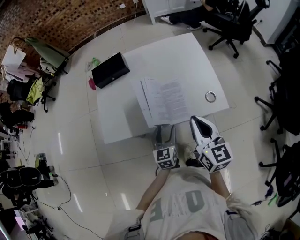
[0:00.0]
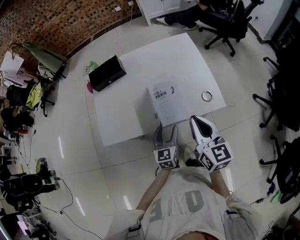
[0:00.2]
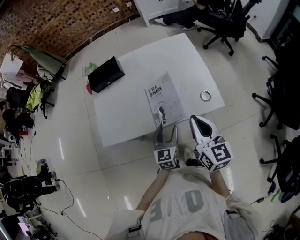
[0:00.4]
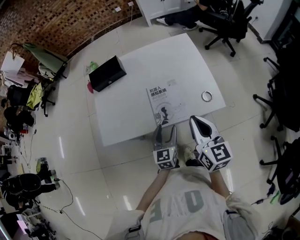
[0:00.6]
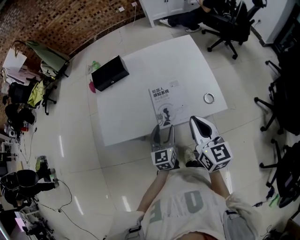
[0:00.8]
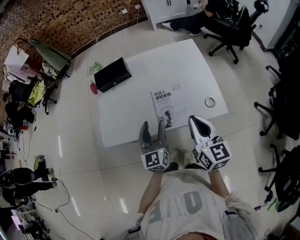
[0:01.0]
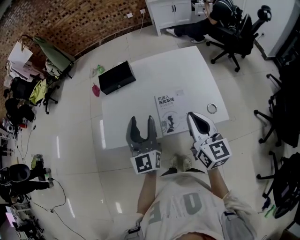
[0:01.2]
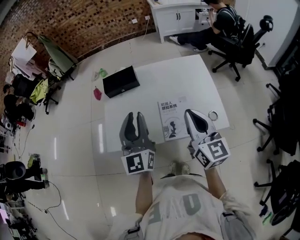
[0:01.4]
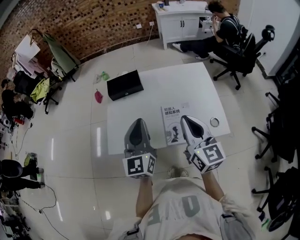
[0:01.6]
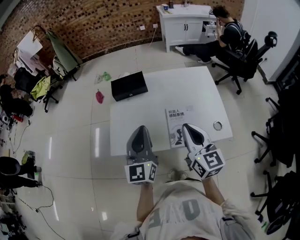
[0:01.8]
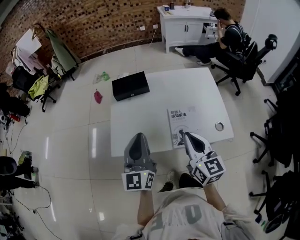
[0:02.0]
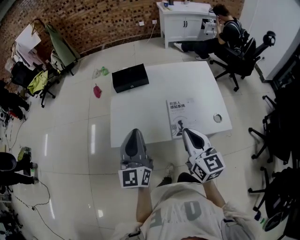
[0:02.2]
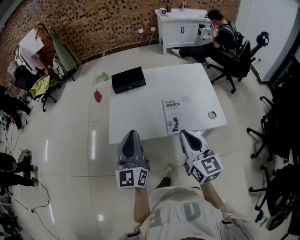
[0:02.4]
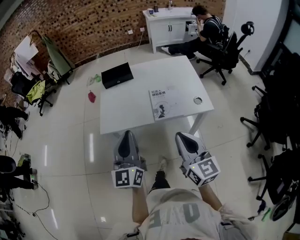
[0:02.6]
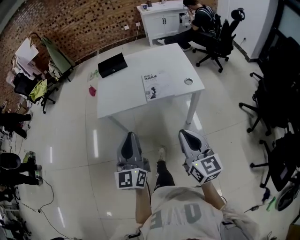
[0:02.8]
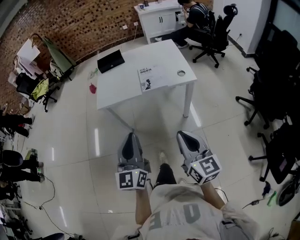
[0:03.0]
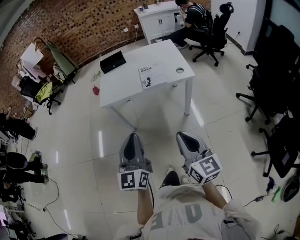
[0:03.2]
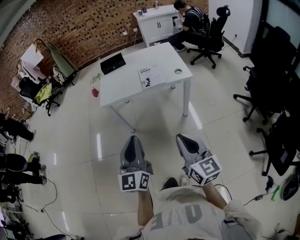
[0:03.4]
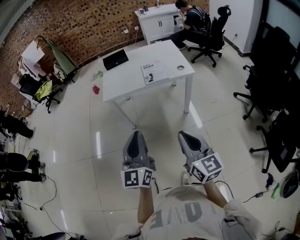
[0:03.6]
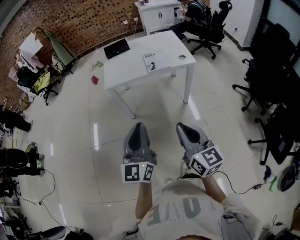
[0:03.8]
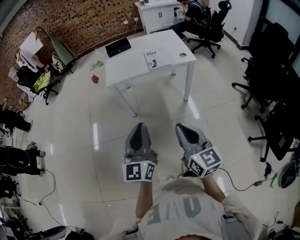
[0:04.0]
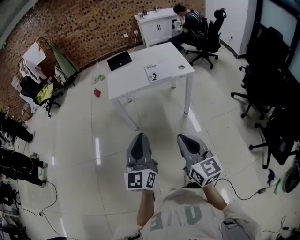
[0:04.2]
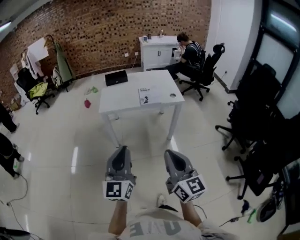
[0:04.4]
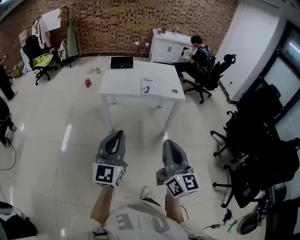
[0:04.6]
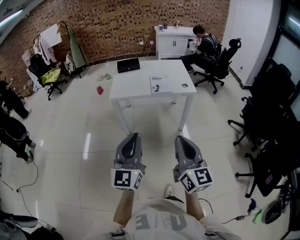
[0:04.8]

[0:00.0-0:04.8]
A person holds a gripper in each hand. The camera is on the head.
0.0 to 1.6 s: The right gripper goes about 10 cm upward, to the left and forward; the left gripper goes about 25 cm upward and to the left, swivels about 30 degrees, and closes.
1.6 to 3.2 s: The two grippers travel together, backward, some 50 cm.
3.2 to 4.8 s: The left gripper goes approximately 15 cm backward. Meanwhile the right gripper moves backward and upward, some 15 cm.

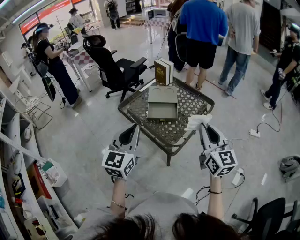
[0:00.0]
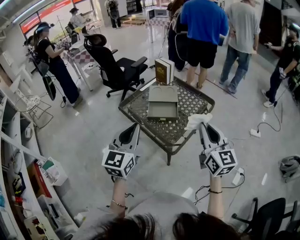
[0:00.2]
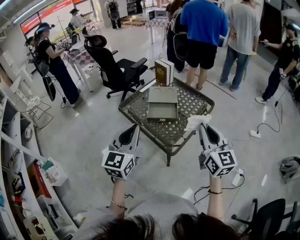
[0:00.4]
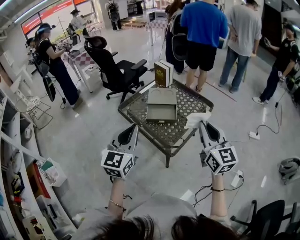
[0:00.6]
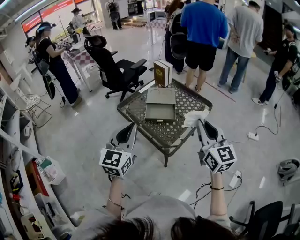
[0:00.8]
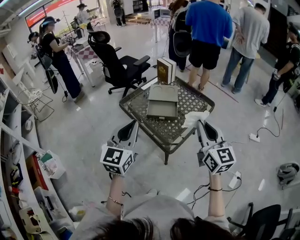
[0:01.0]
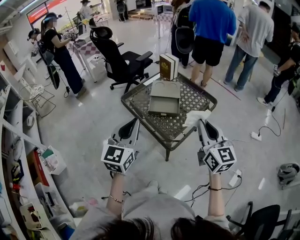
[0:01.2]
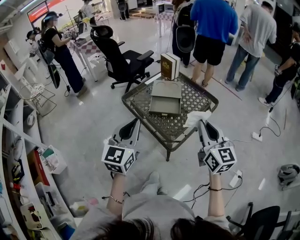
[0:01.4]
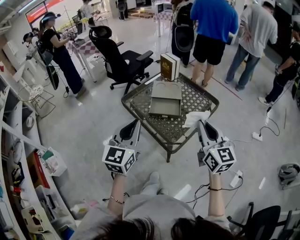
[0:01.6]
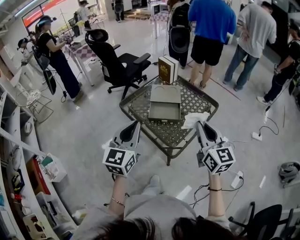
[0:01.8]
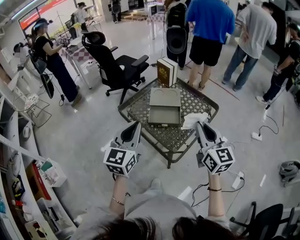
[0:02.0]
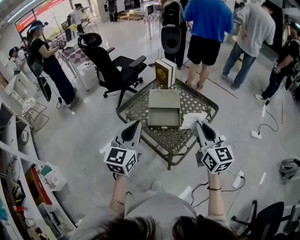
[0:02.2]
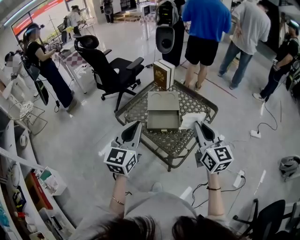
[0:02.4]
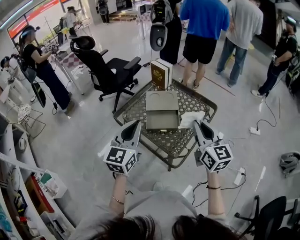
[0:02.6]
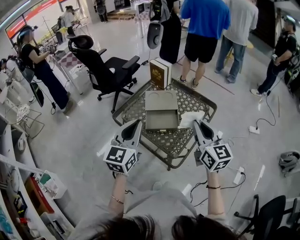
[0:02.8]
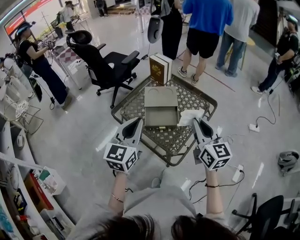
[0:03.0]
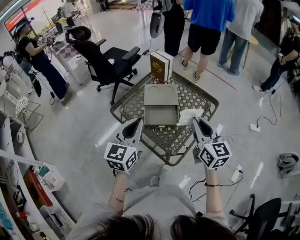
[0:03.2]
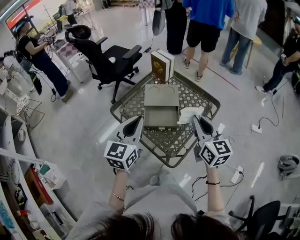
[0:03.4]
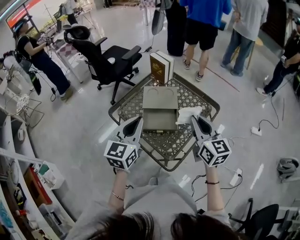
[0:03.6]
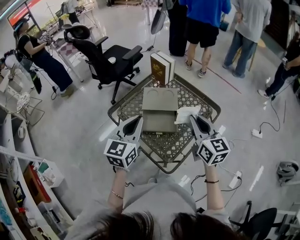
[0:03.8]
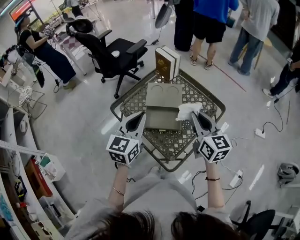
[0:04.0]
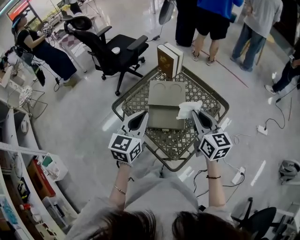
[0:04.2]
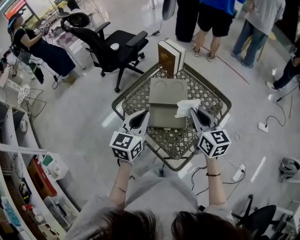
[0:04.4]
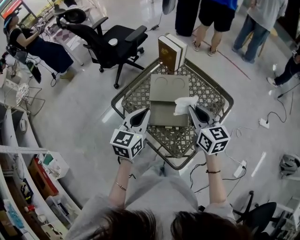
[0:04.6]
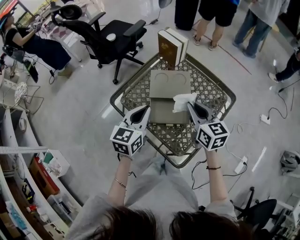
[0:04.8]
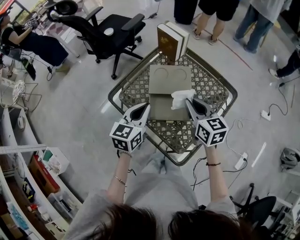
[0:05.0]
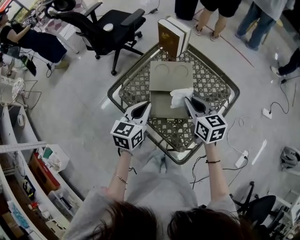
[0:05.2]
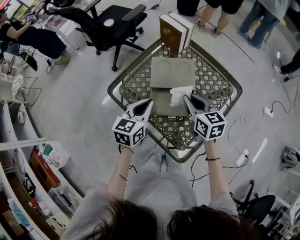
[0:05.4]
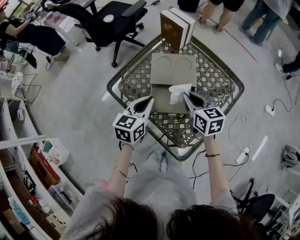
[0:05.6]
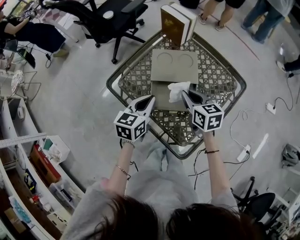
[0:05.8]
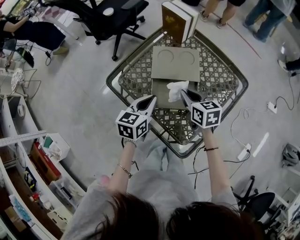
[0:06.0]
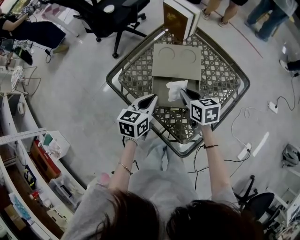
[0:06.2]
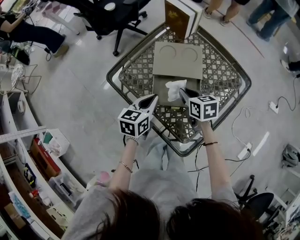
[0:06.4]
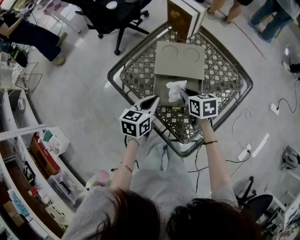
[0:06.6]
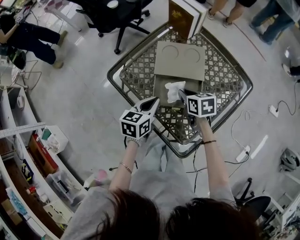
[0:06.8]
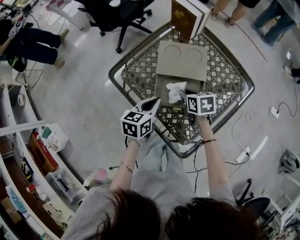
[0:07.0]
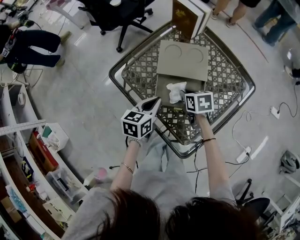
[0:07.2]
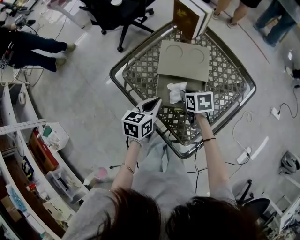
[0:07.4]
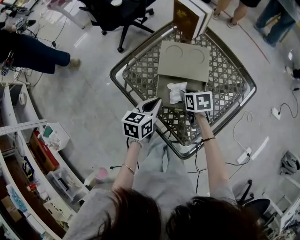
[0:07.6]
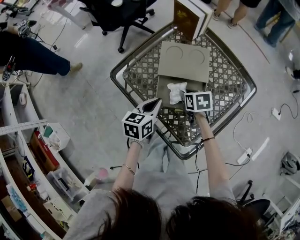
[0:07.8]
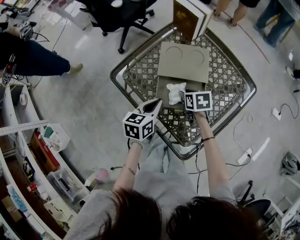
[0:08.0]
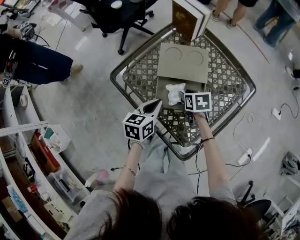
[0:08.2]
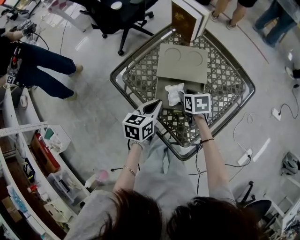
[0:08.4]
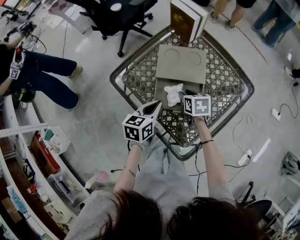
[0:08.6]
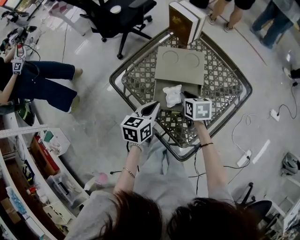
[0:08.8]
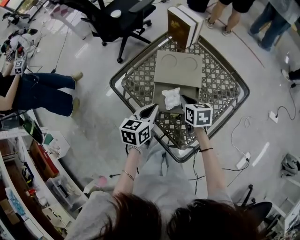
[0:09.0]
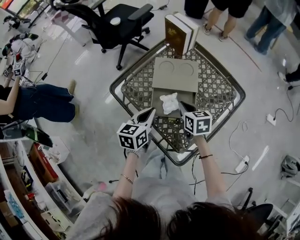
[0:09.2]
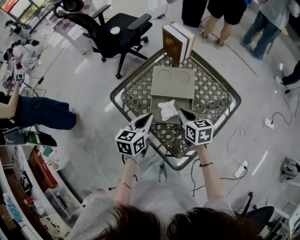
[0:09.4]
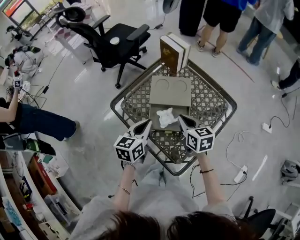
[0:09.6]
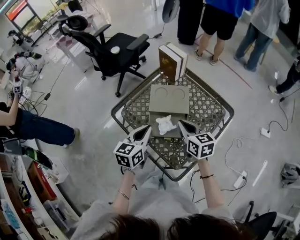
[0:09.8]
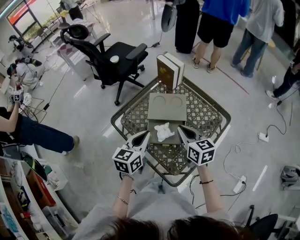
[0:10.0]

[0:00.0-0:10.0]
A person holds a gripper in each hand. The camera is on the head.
0.0 to 1.4 s: The grippers move only a little.
1.4 to 2.8 s: Both grippers travel together forward, about 15 cm.
2.8 to 4.2 s: The grippers both shift forward and downward by some 15 cm.
4.2 to 5.8 s: Both grippers travel together downward, about 20 cm. The right gripper changes its angle by roughly 20 degrees. Meanwhile the left gripper turns by approximately 20 degrees.
5.8 to 7.2 s: The right gripper is displaced downward by roughly 10 cm, and changes its angle by roughly 20 degrees. Meanwhile the left gripper moves downward, roughly 5 cm.
7.2 to 8.6 s: The right gripper opens up.
8.6 to 10.0 s: The two grippers go roughly 15 cm upward. The right gripper tips its fingers upward by some 30 degrees, and closes.

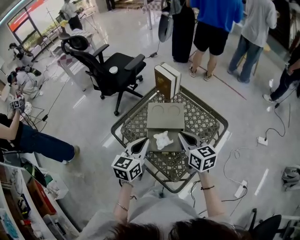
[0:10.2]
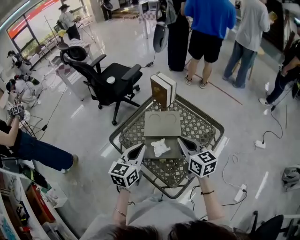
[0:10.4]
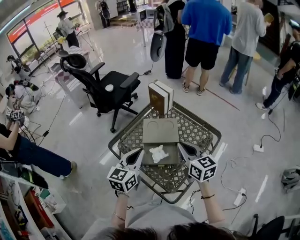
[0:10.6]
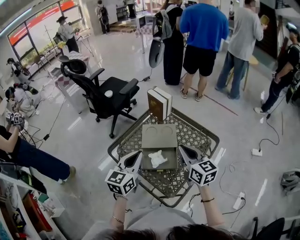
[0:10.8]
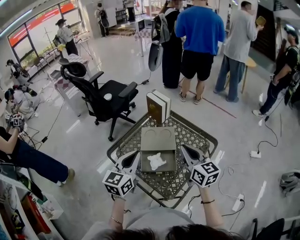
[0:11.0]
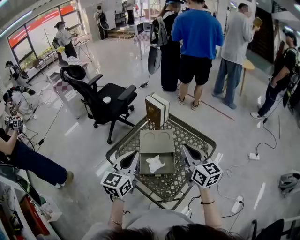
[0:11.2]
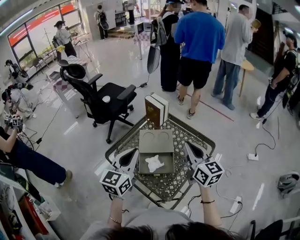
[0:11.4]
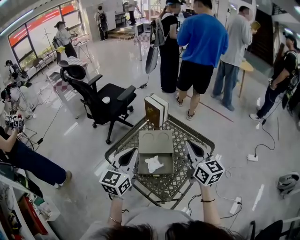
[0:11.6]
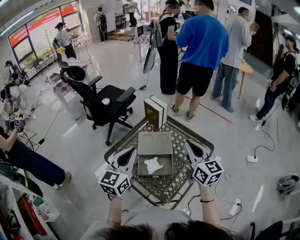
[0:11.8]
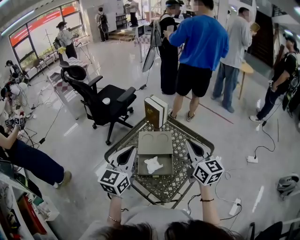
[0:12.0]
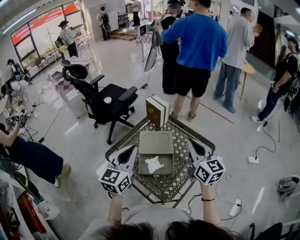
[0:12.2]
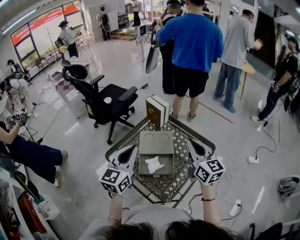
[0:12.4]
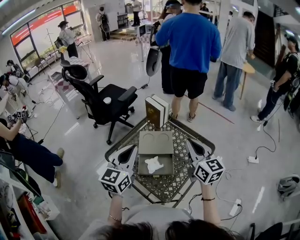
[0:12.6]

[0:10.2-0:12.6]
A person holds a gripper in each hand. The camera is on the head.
10.2 to 11.4 s: The left gripper is displaced upward by approximately 10 cm. Meanwhile the right gripper travels upward and to the right by roughly 15 cm.
11.4 to 12.6 s: There are only small adjustments of the grippers.

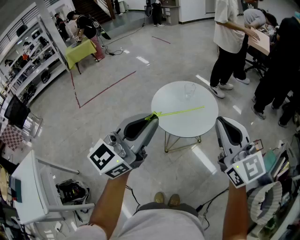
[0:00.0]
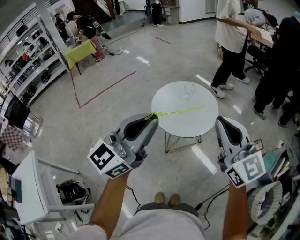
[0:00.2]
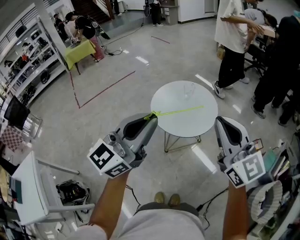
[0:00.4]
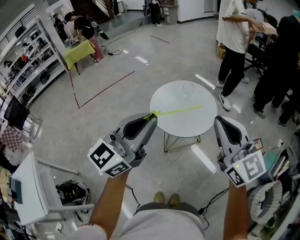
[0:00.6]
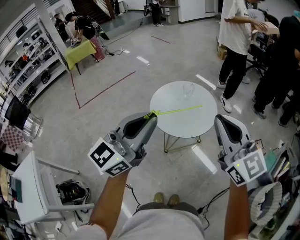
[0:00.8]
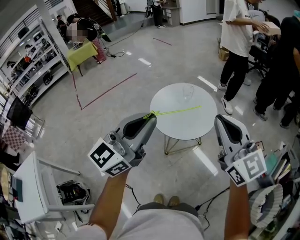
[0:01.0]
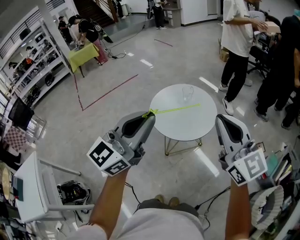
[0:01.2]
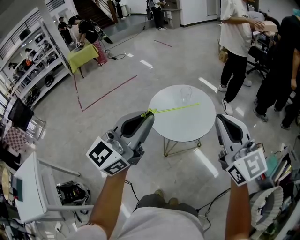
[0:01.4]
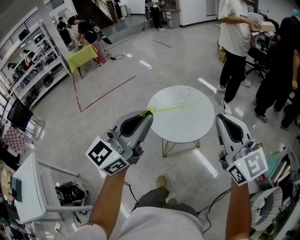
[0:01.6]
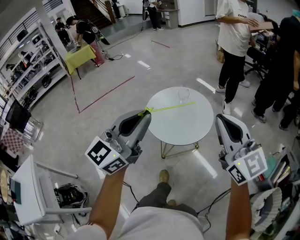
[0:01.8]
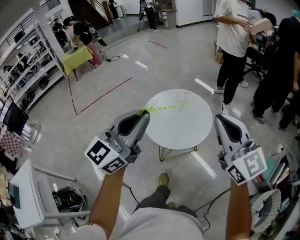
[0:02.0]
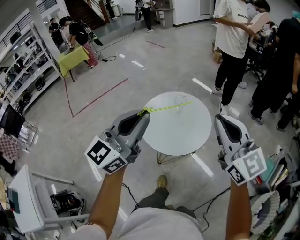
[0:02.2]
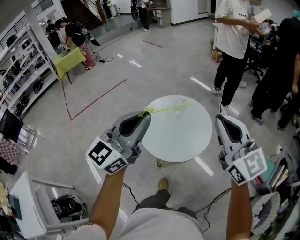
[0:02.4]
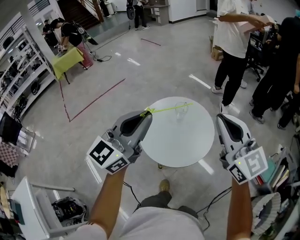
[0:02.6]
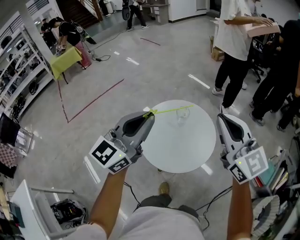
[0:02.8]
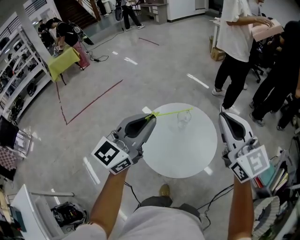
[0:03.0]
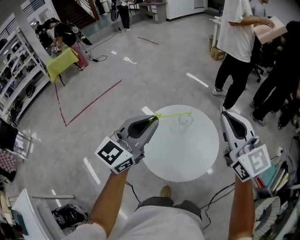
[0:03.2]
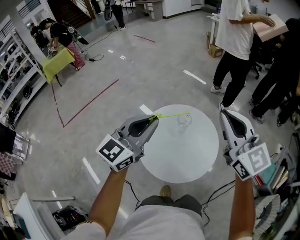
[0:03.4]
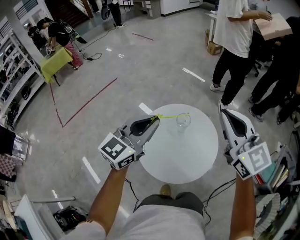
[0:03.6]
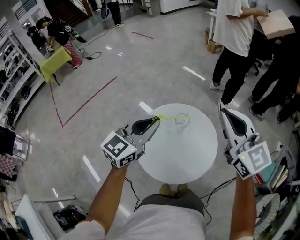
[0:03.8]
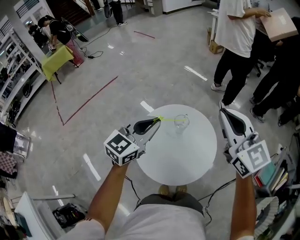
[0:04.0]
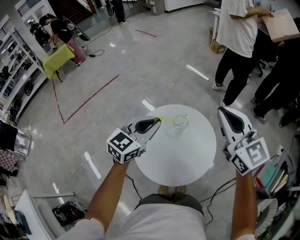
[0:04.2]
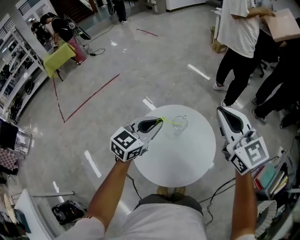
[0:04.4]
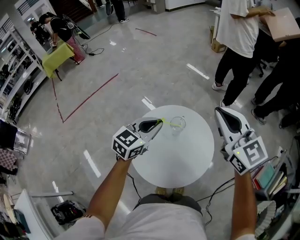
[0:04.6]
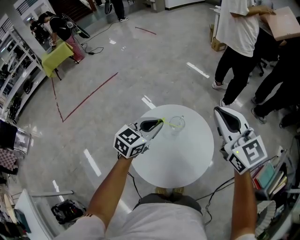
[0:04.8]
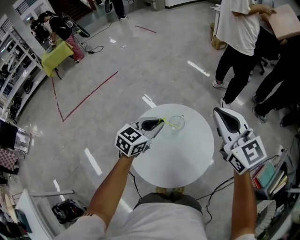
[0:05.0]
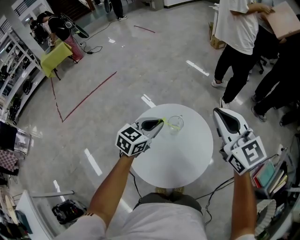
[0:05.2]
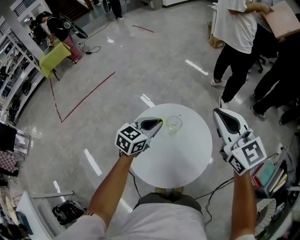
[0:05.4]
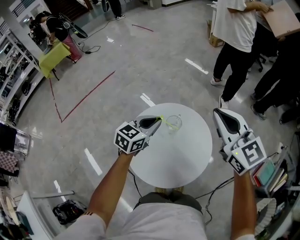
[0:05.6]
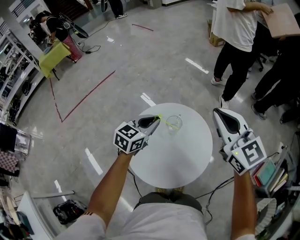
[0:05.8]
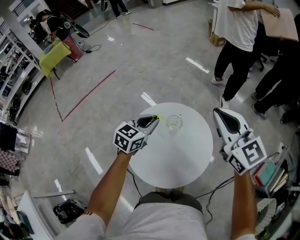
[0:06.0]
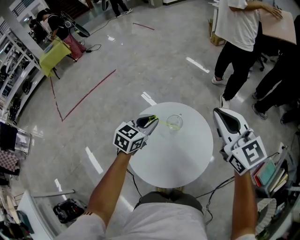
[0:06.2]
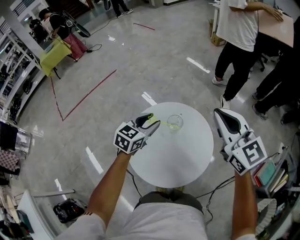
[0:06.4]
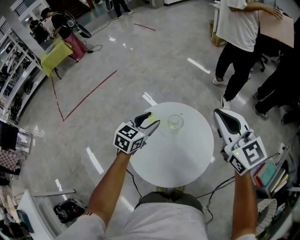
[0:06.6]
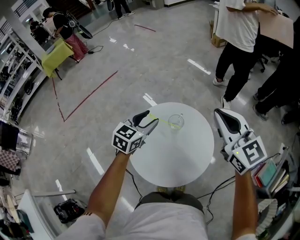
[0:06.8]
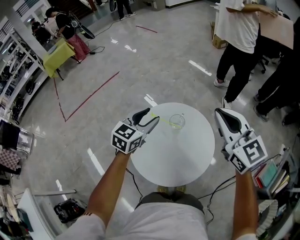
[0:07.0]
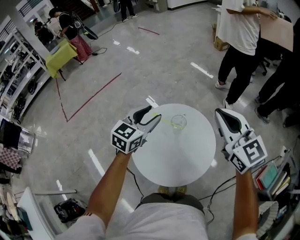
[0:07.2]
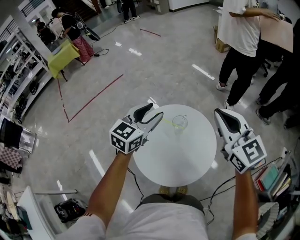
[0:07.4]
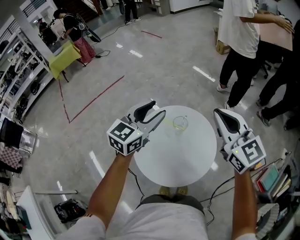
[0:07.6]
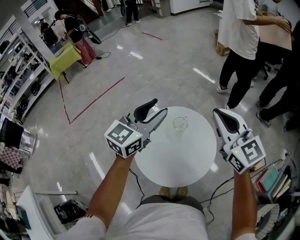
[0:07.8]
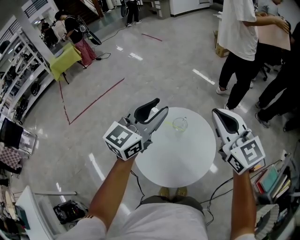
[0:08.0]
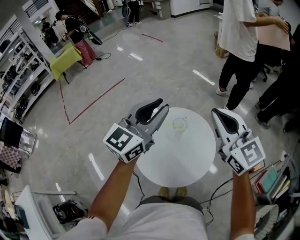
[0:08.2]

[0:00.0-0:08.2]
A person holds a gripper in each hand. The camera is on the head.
0.0 to 1.6 s: The right gripper ends up roughly 5 cm from where it was.
1.6 to 3.2 s: The grippers both shift forward by roughly 25 cm.
3.2 to 5.0 s: The right gripper travels forward and downward by about 10 cm. Meanwhile the left gripper moves downward and forward, some 20 cm, and turns by approximately 30 degrees.
5.0 to 6.6 s: The left gripper opens.
6.6 to 8.2 s: The right gripper ends up roughly 5 cm from where it was; the left gripper is displaced upward by about 20 cm, angles its fingers upward, by approximately 30 degrees, and closes.
